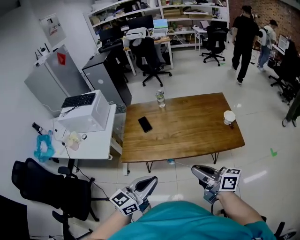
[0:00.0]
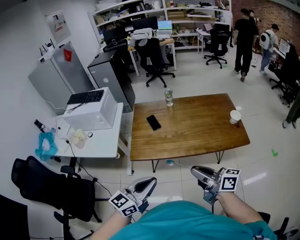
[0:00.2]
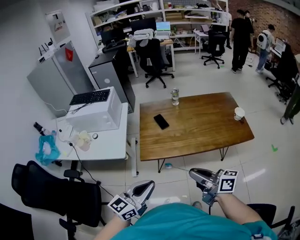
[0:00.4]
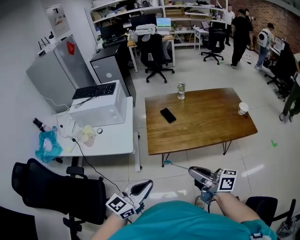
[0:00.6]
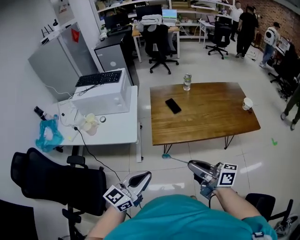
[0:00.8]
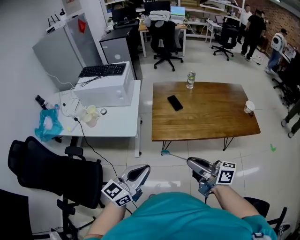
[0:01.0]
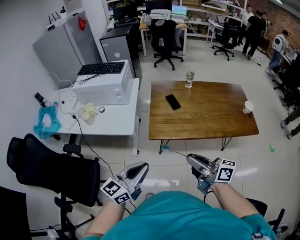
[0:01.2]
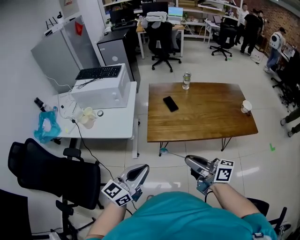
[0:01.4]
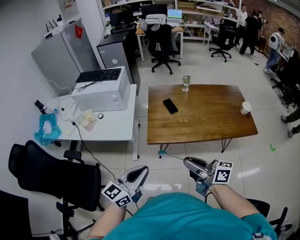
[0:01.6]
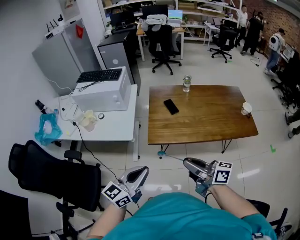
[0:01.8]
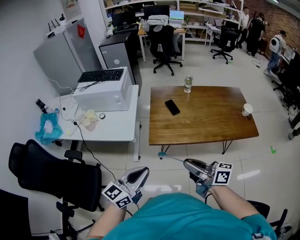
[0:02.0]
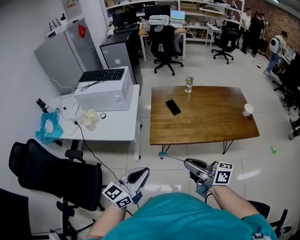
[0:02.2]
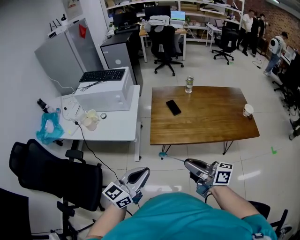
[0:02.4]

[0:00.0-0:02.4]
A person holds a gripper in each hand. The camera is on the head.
0:00.0 to 0:01.2: Both grippers move to the left, about 35 cm.
0:01.2 to 0:02.4: There are only small adjustments of the grippers.

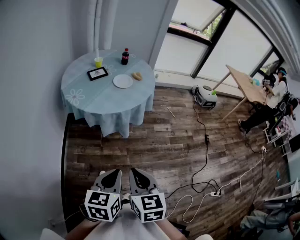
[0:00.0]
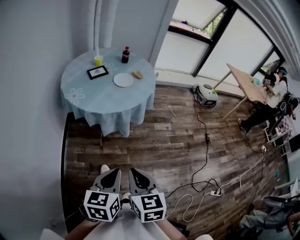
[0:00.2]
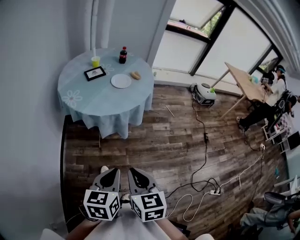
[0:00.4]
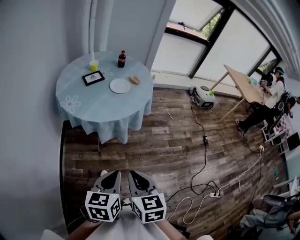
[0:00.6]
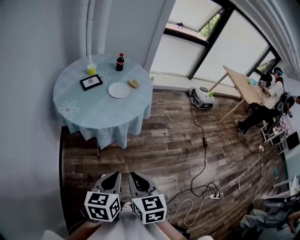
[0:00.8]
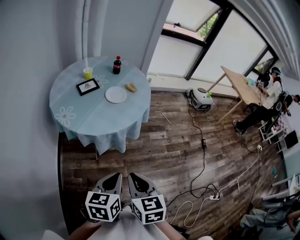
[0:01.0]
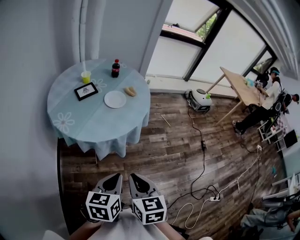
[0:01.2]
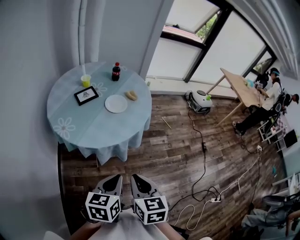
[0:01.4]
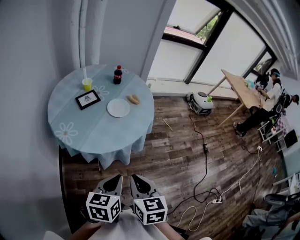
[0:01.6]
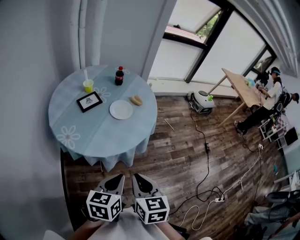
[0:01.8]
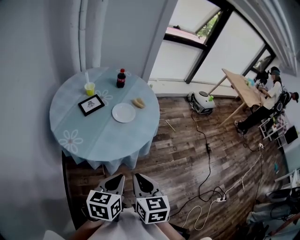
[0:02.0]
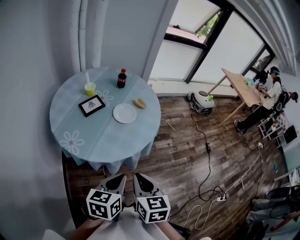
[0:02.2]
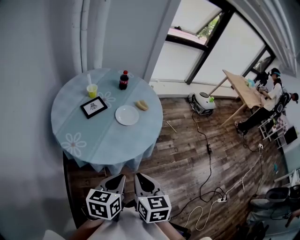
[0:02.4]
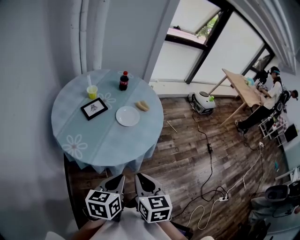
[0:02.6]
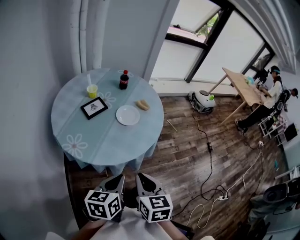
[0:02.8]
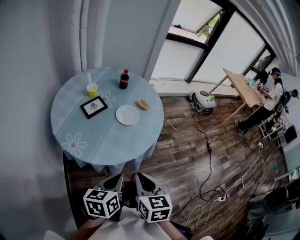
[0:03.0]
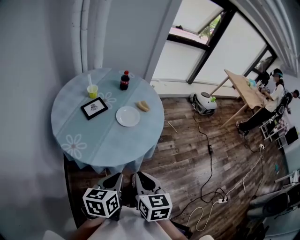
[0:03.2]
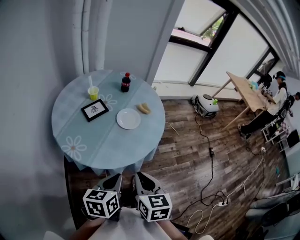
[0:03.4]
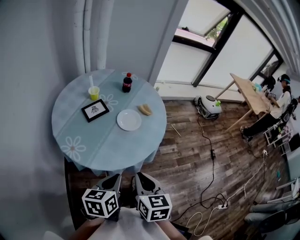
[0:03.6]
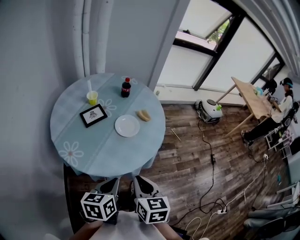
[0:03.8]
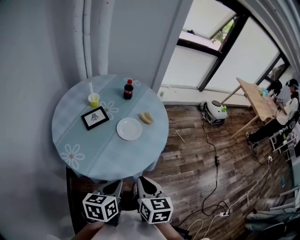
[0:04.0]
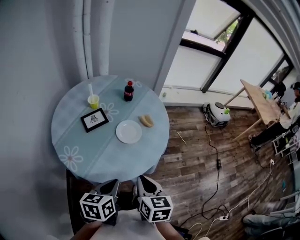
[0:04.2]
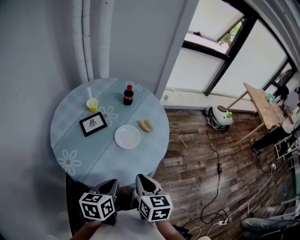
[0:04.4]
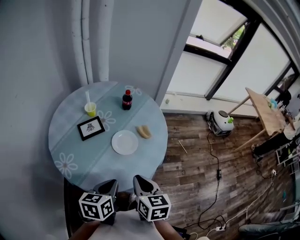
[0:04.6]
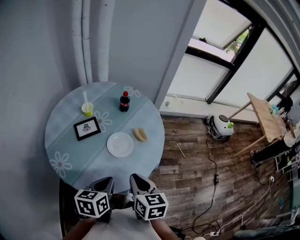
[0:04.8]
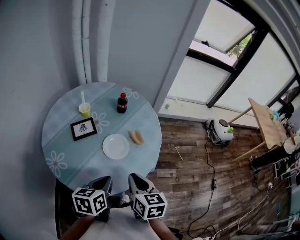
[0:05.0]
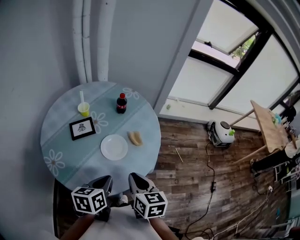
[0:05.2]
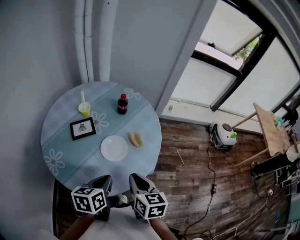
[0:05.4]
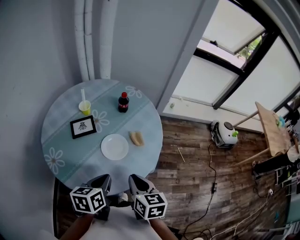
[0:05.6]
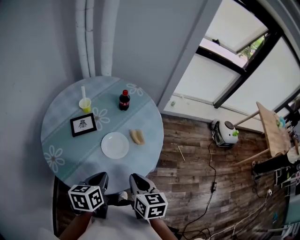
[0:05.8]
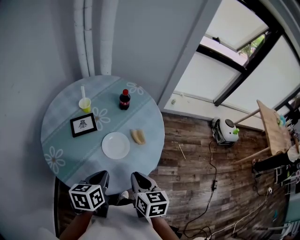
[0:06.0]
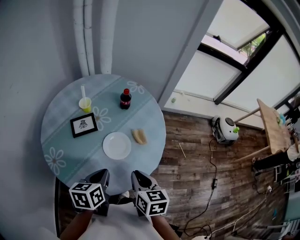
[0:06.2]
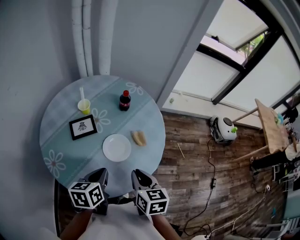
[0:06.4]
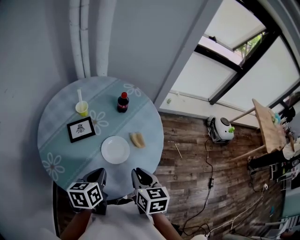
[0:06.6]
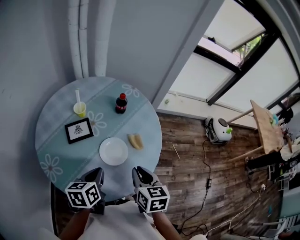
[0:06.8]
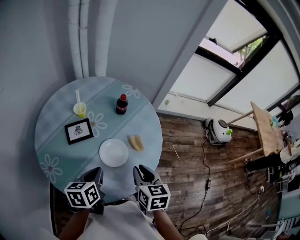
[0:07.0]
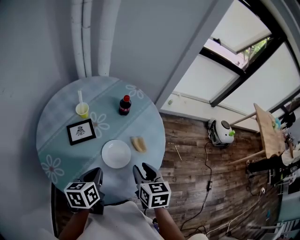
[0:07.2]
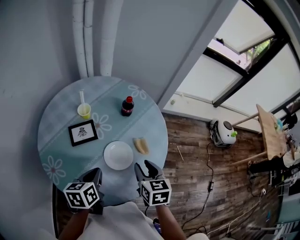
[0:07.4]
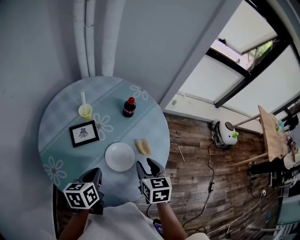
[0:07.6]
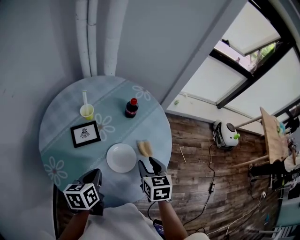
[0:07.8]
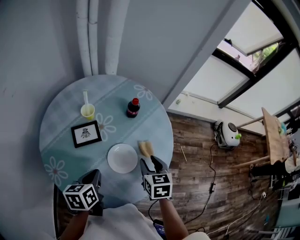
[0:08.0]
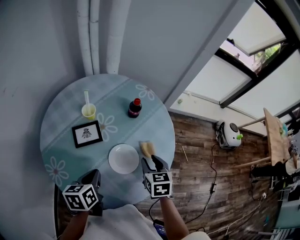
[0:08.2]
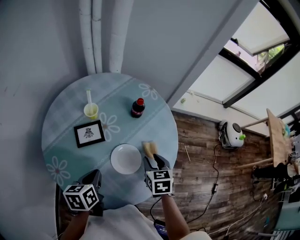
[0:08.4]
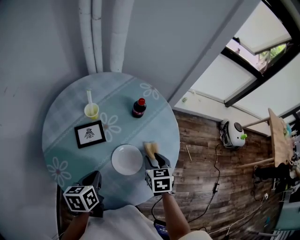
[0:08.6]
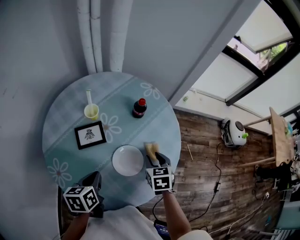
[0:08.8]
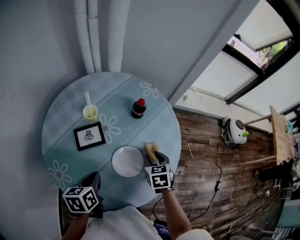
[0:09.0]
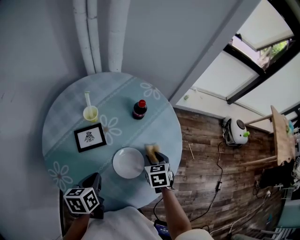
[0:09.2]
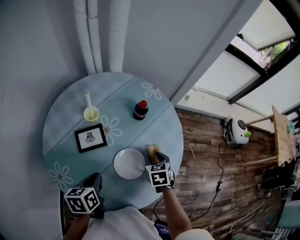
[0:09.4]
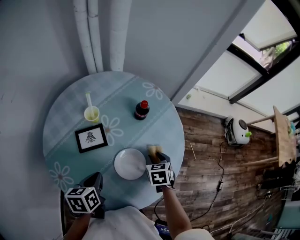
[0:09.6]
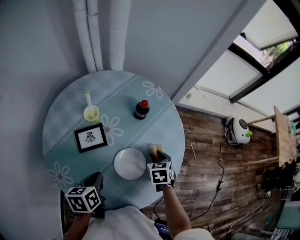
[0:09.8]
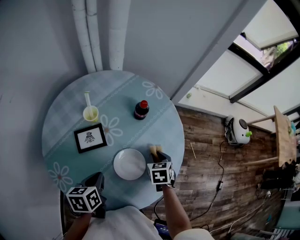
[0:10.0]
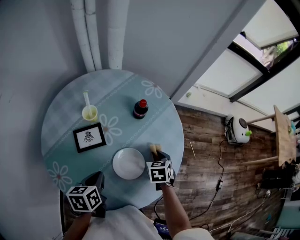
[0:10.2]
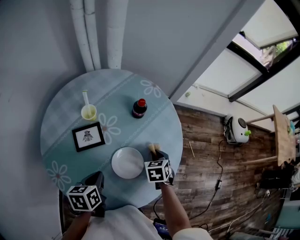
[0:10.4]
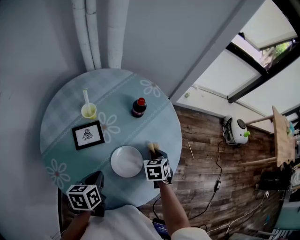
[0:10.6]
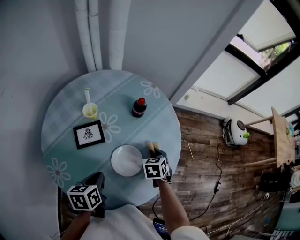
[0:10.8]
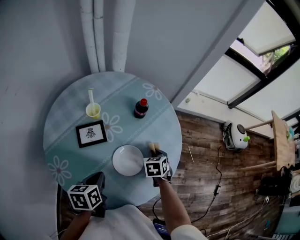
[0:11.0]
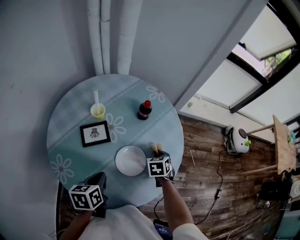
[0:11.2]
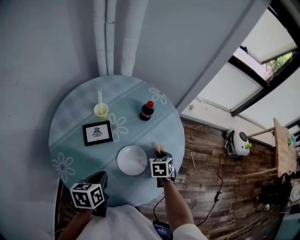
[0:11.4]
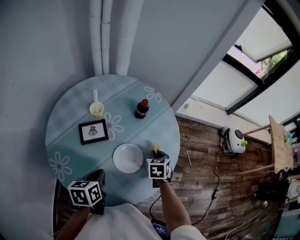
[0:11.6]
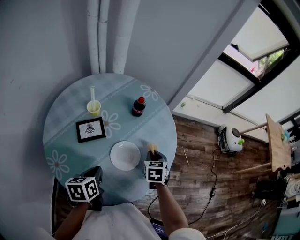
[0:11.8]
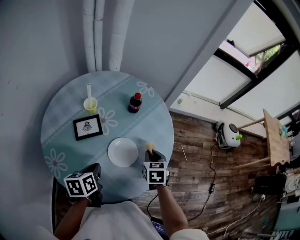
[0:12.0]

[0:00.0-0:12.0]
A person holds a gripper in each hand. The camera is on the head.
0:00.0 to 0:01.6: The grippers both shift forward by approximately 20 cm.
0:01.6 to 0:03.0: The two grippers go roughly 10 cm to the left and forward.
0:03.0 to 0:04.4: Both grippers travel together forward, approximately 15 cm.
0:04.4 to 0:06.0: The right gripper moves forward and to the right, roughly 10 cm, while the left gripper moves forward, roughly 10 cm.
0:06.0 to 0:07.6: The right gripper heads forward, covering about 15 cm, and opens its fingers; the left gripper moves forward and to the left, approximately 10 cm.
0:07.6 to 0:09.0: The right gripper moves downward and forward, some 10 cm.
0:09.0 to 0:10.4: The right gripper shifts by roughly 5 cm, and closes its fingers.
0:10.4 to 0:12.0: The right gripper travels upward by about 5 cm.

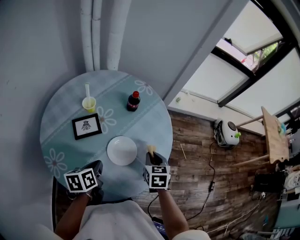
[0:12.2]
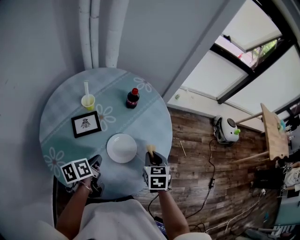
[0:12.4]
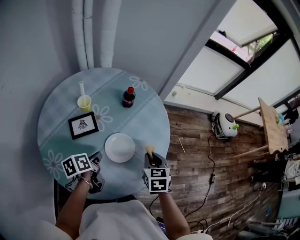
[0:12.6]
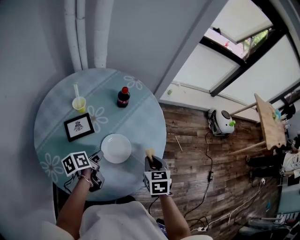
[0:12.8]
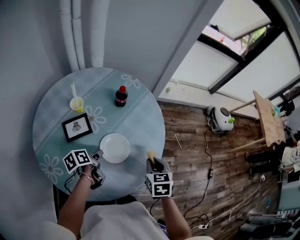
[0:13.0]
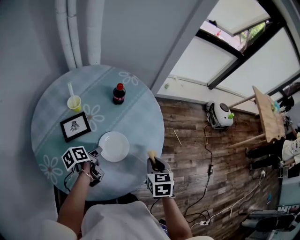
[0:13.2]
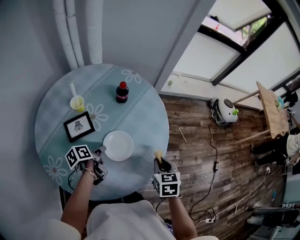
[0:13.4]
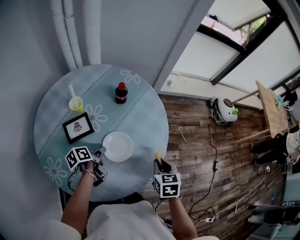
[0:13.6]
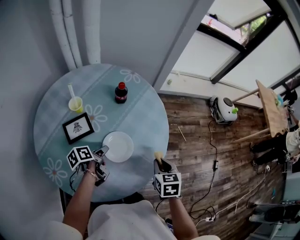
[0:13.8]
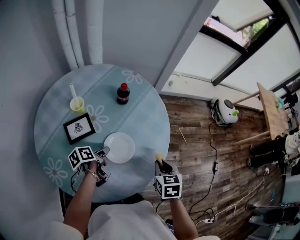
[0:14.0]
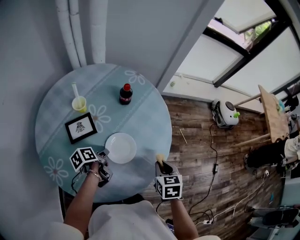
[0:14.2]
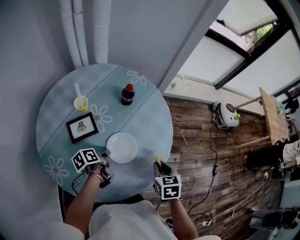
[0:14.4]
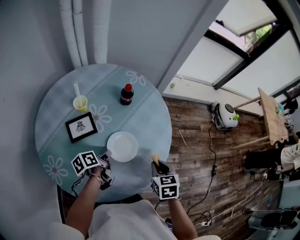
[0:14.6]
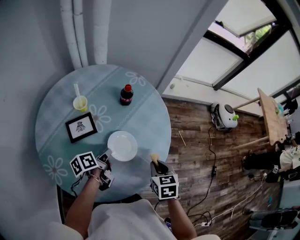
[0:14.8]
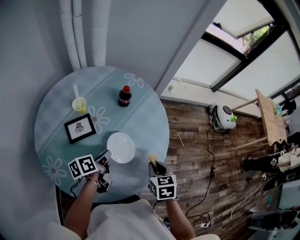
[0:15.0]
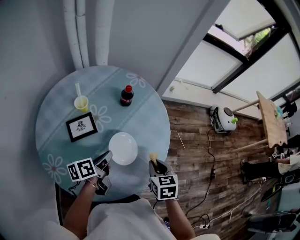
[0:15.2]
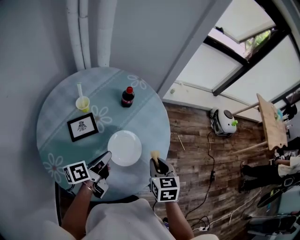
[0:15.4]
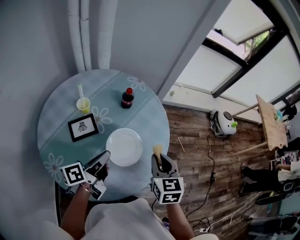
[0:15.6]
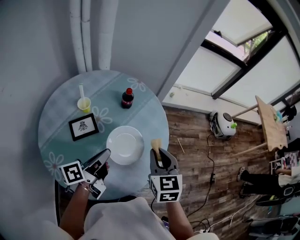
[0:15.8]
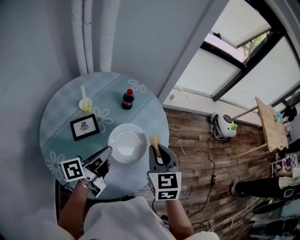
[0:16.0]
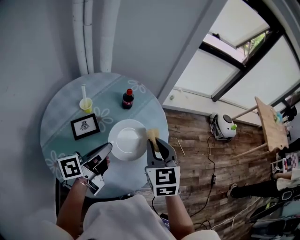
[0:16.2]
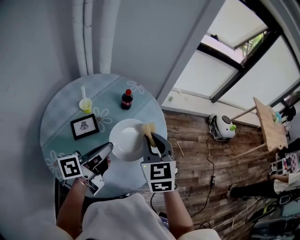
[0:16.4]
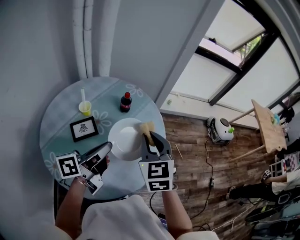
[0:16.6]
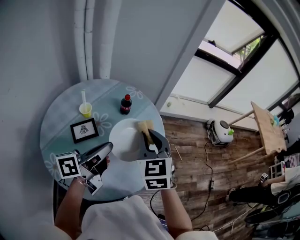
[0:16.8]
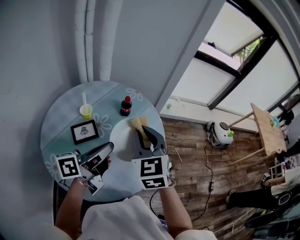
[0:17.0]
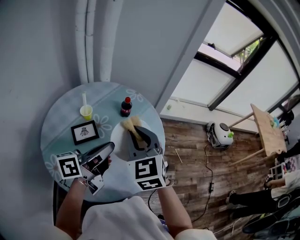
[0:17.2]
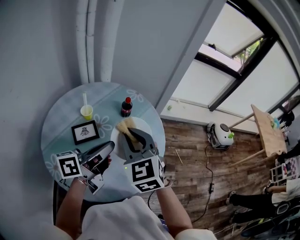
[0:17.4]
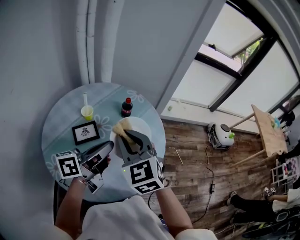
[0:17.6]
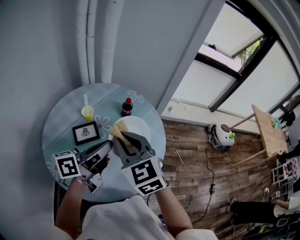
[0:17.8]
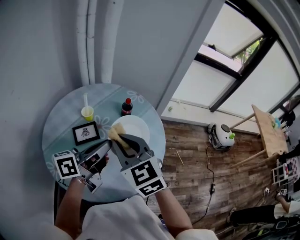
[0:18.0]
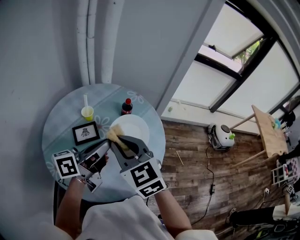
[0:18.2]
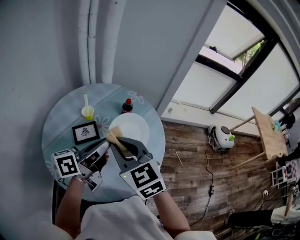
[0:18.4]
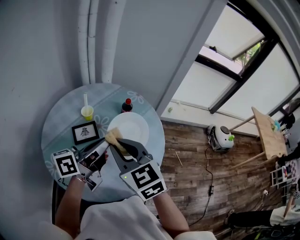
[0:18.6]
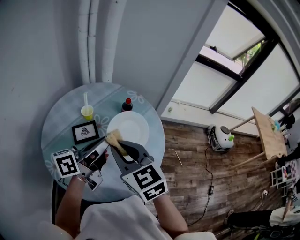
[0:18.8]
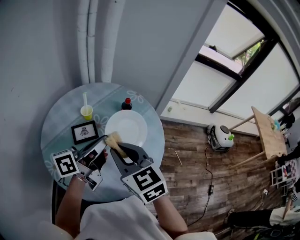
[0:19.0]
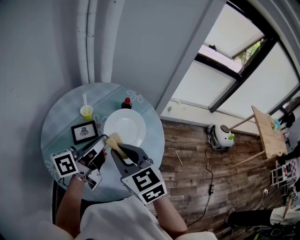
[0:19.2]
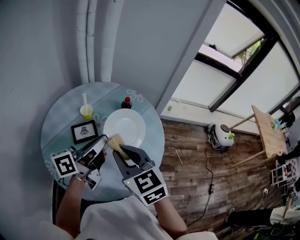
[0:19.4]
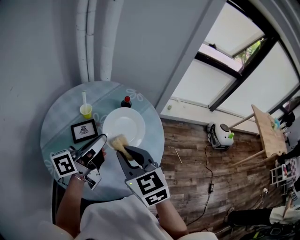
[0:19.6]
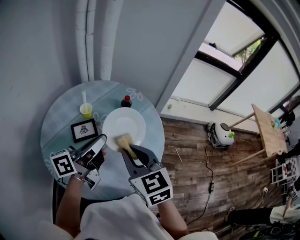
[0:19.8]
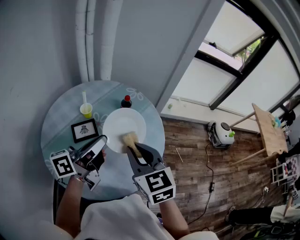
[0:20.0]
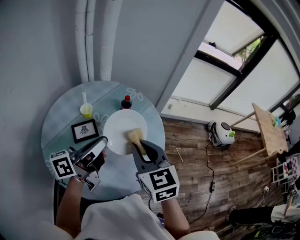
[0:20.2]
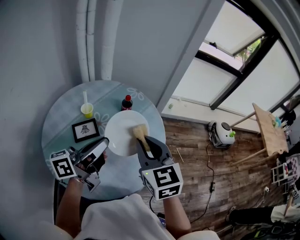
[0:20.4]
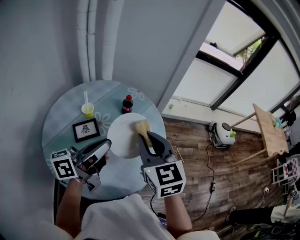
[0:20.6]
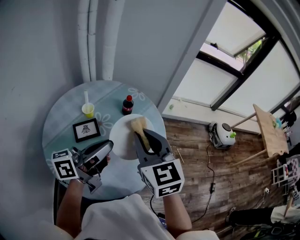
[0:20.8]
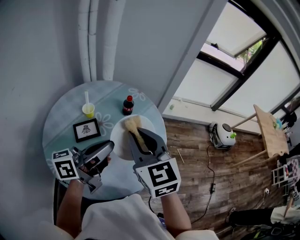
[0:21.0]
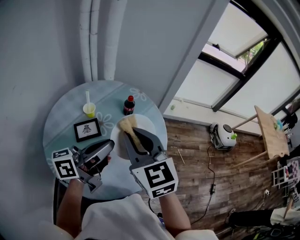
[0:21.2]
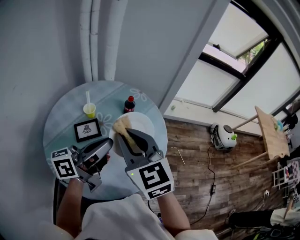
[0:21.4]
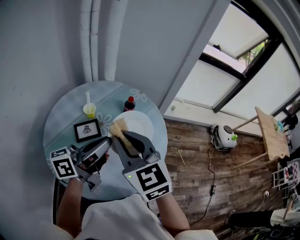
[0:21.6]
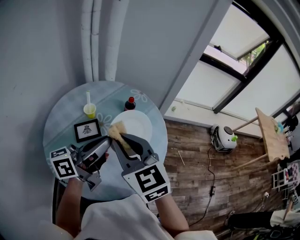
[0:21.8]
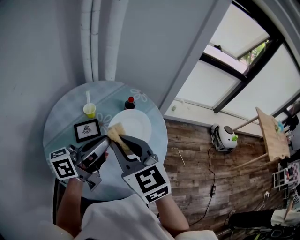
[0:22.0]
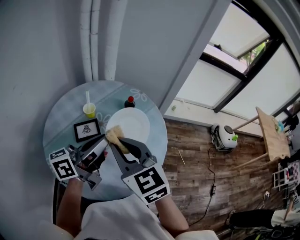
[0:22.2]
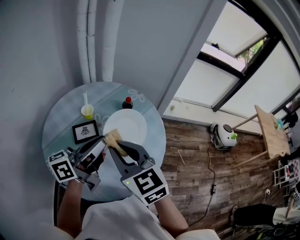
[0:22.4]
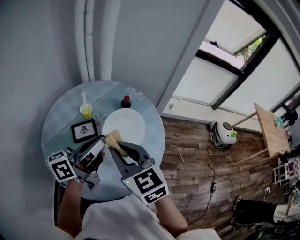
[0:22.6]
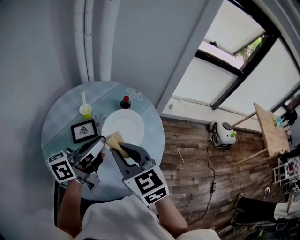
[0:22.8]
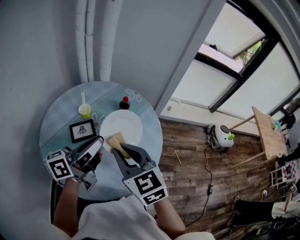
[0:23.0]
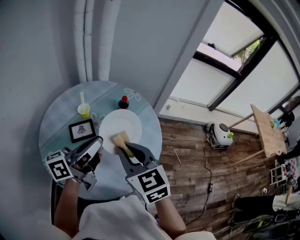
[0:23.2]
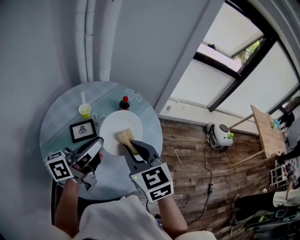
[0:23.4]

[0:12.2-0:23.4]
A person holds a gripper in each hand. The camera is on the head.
0:12.2 to 0:13.8: The right gripper moves backward and to the right, about 10 cm. The left gripper goes roughly 10 cm downward and forward, changes its angle by roughly 30 degrees, and opens up.
0:13.8 to 0:15.4: The right gripper ends up approximately 5 cm from where it was. Meanwhile the left gripper goes approximately 10 cm upward, changes its angle by about 30 degrees, and closes.
0:15.4 to 0:17.0: The right gripper moves upward and to the left, roughly 20 cm, and turns by about 30 degrees. The left gripper is displaced upward by some 15 cm, and swivels approximately 30 degrees.
0:17.0 to 0:18.6: The right gripper is displaced backward and to the left by approximately 10 cm, and rotates some 30 degrees.
0:18.6 to 0:20.2: The right gripper shifts approximately 10 cm to the right.
0:20.2 to 0:21.8: The right gripper travels to the left by some 5 cm.
0:21.8 to 0:23.4: The right gripper moves some 5 cm.
